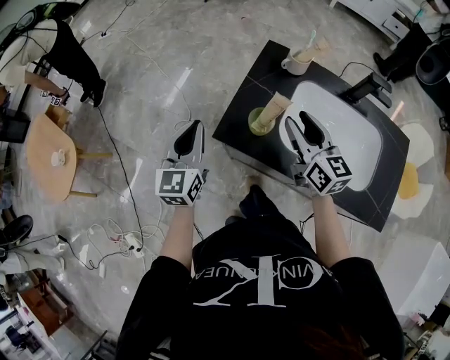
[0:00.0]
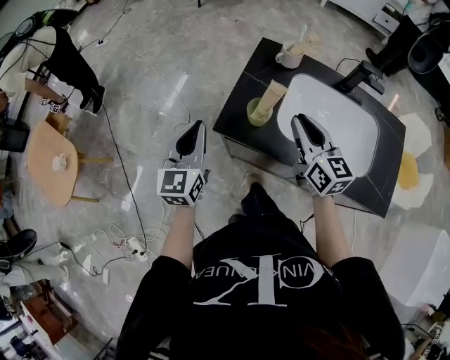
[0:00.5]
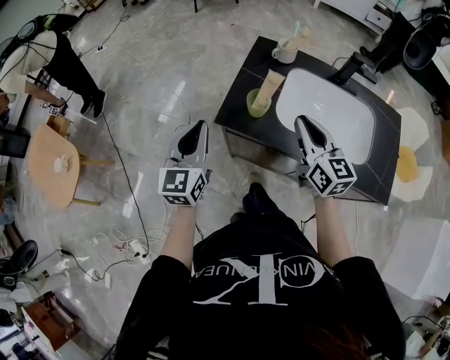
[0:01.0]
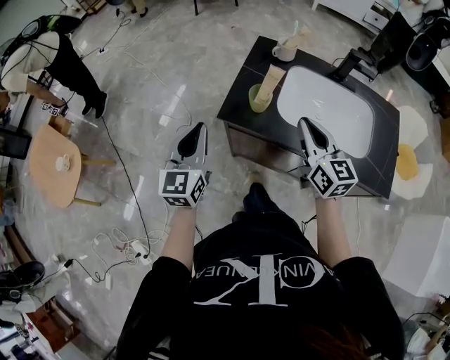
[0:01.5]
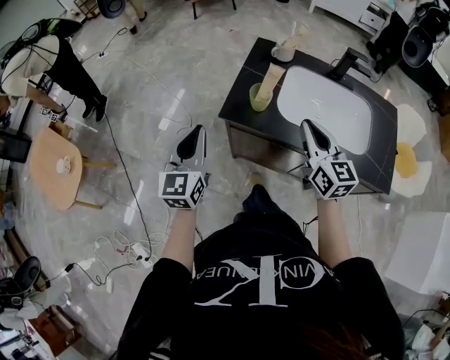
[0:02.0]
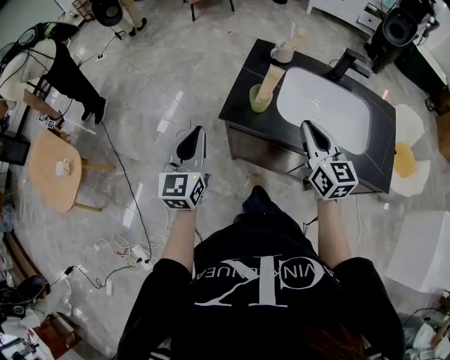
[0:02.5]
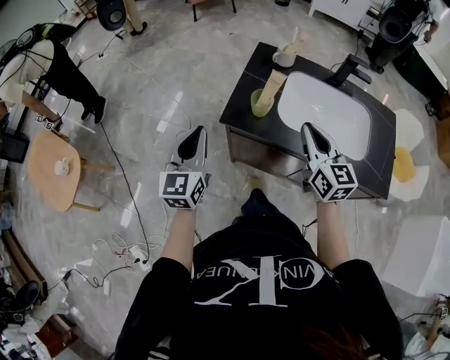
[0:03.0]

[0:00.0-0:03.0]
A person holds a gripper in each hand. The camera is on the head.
0:00.0 to 0:01.5: The two grippers go about 10 cm backward. The right gripper closes up.
0:01.5 to 0:03.0: There are only small adjustments of the grippers.

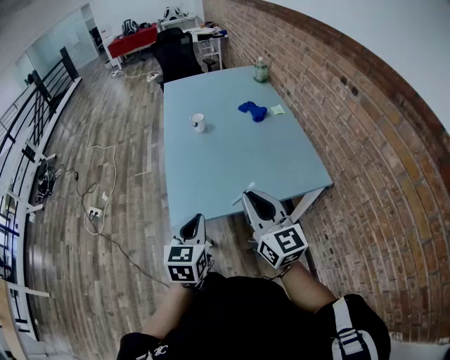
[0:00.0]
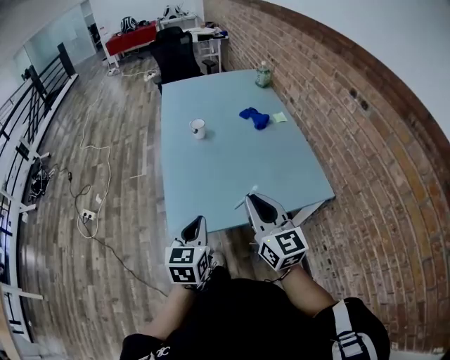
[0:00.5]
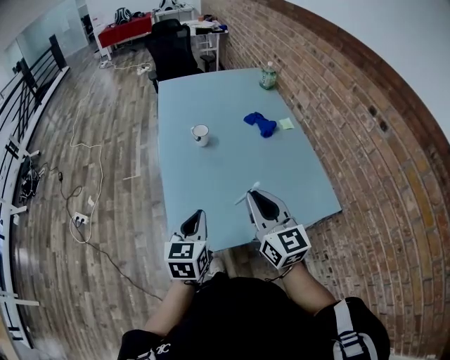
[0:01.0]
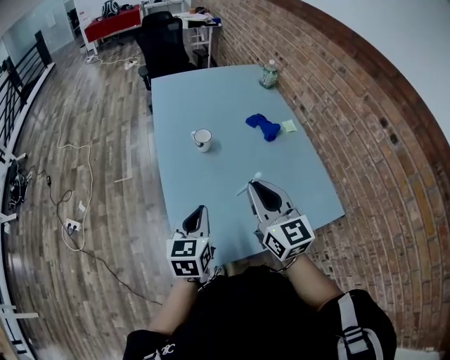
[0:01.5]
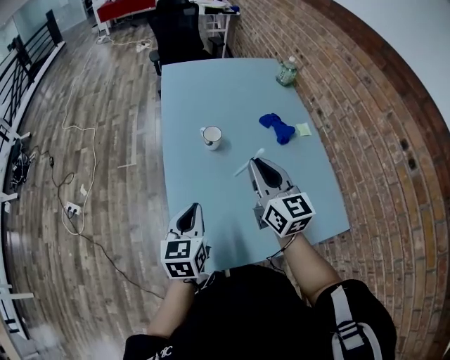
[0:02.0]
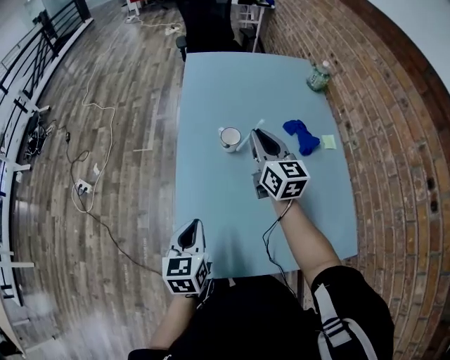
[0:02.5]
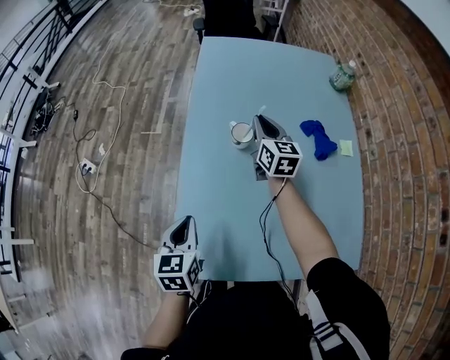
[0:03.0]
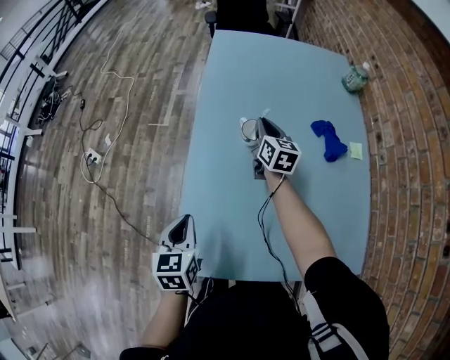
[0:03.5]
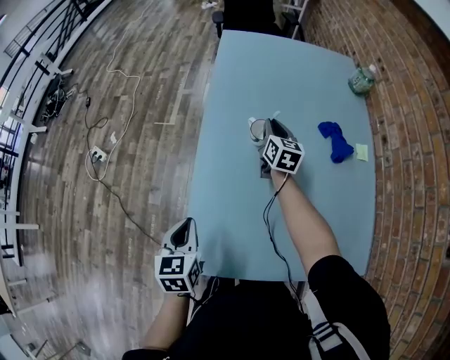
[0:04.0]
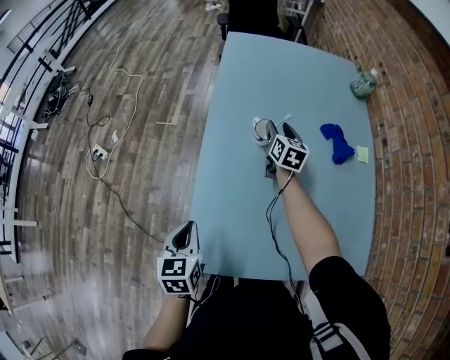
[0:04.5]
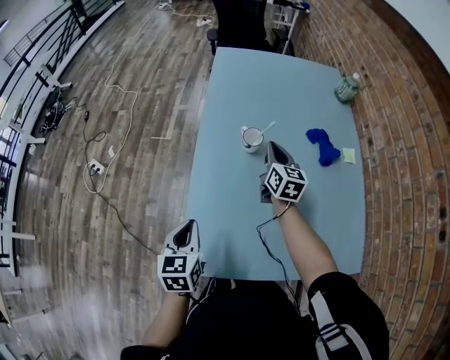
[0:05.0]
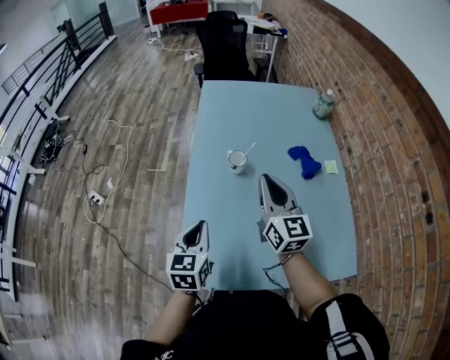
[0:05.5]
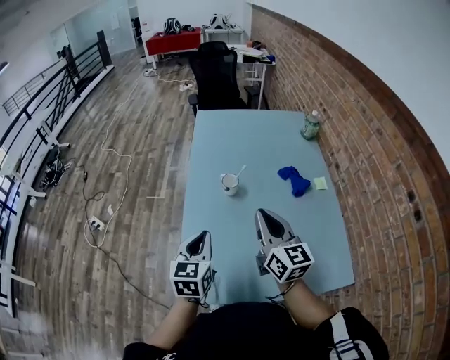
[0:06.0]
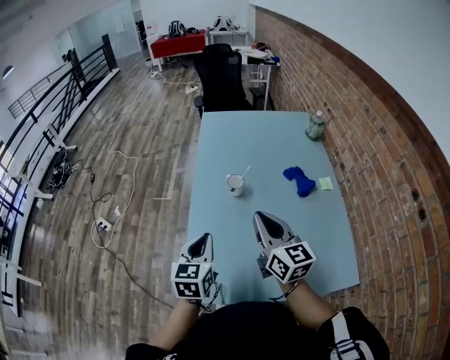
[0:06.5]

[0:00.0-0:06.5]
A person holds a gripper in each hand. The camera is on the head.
0:00.0 to 0:02.0: Both grippers move forward, approximately 35 cm.
0:02.0 to 0:04.5: The right gripper shifts roughly 35 cm forward and downward, changes its angle by about 20 degrees, and opens its fingers; the left gripper goes roughly 10 cm downward and to the left, and turns by approximately 20 degrees.
0:04.5 to 0:06.5: The left gripper travels upward and to the right by some 15 cm, and rotates approximately 20 degrees, while the right gripper goes some 40 cm backward and upward, swivels roughly 30 degrees, and closes.

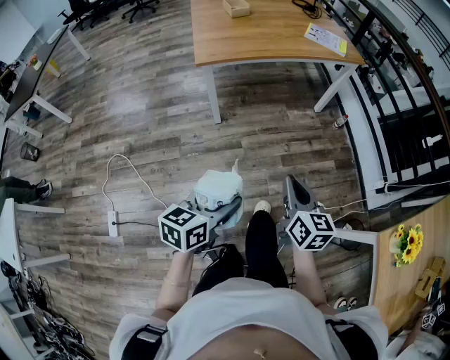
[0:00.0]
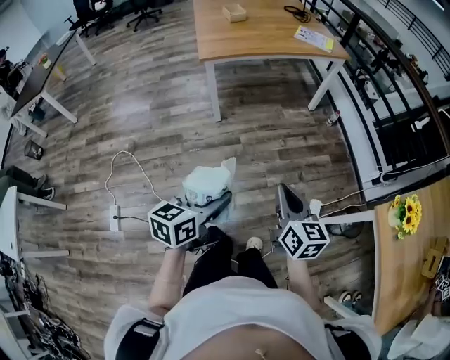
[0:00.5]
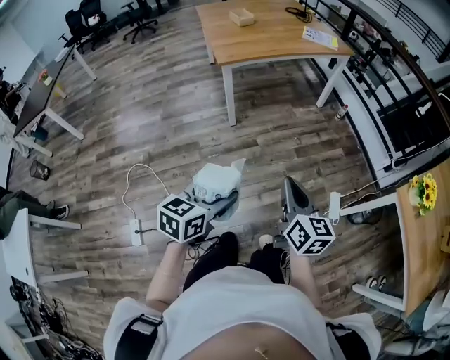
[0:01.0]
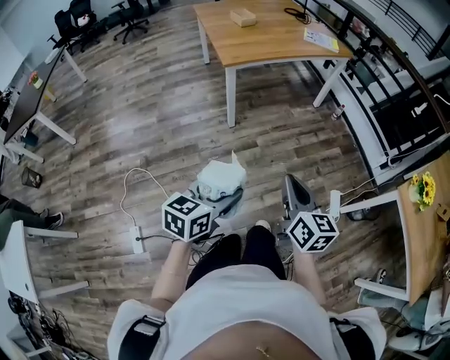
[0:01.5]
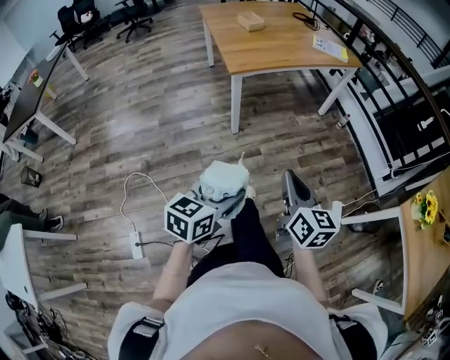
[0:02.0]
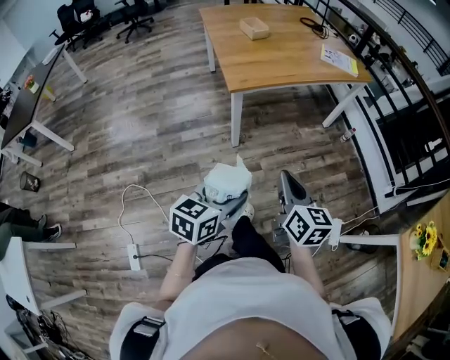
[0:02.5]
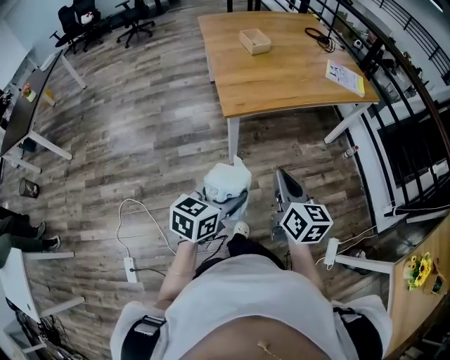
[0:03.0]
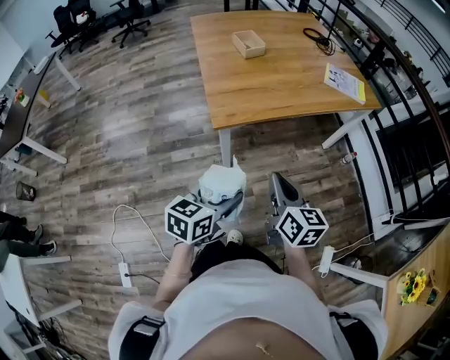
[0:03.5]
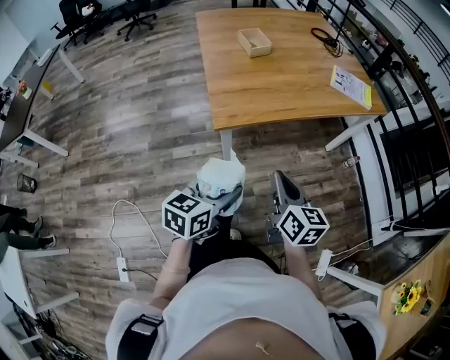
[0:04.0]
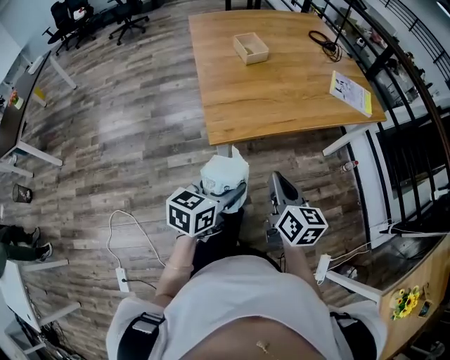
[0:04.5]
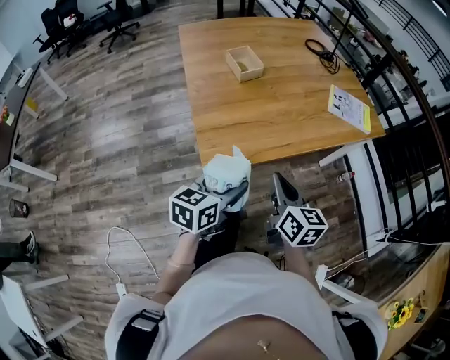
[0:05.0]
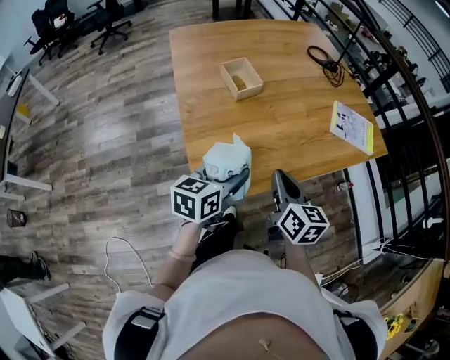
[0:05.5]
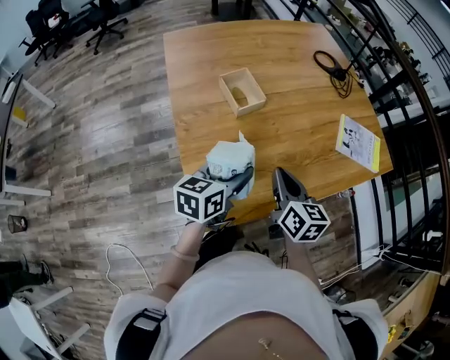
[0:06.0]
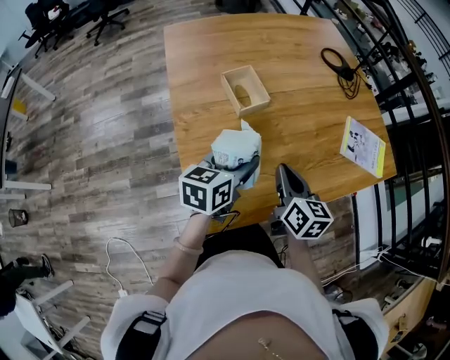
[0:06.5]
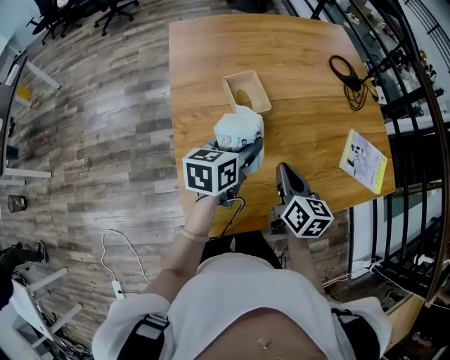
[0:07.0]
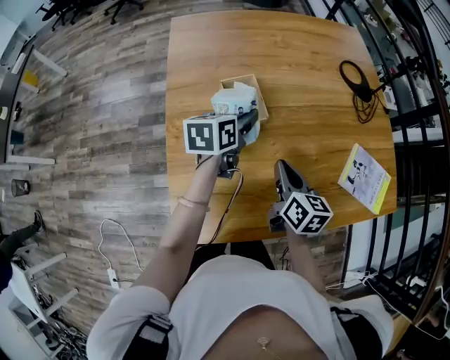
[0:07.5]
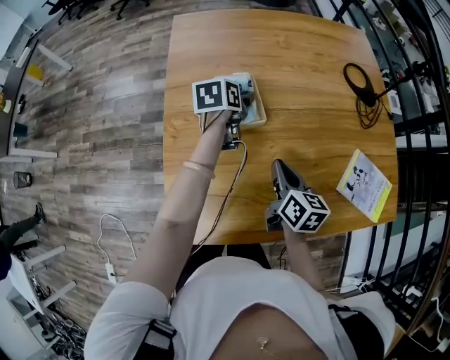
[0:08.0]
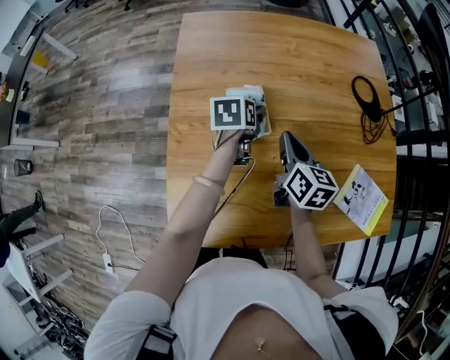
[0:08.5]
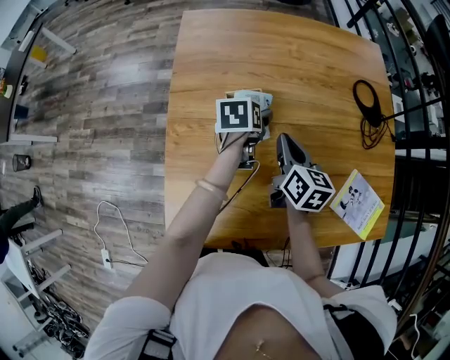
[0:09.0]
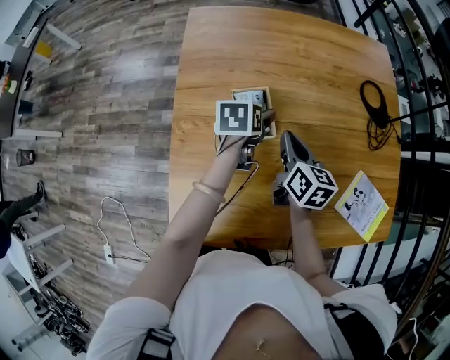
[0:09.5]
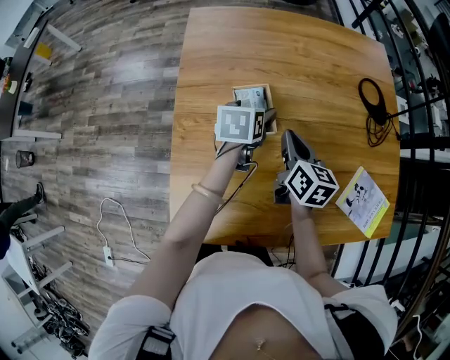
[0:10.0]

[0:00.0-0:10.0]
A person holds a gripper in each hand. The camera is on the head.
0:00.0 to 0:02.0: The grippers both shift to the left and backward by some 25 cm.
0:02.0 to 0:04.0: The grippers both shift forward by approximately 40 cm.
0:04.0 to 0:06.0: The grippers both shift forward by roughly 40 cm.
0:06.0 to 0:08.0: The right gripper moves forward, about 15 cm, while the left gripper shifts about 30 cm forward, and changes its angle by approximately 30 degrees.
0:08.0 to 0:10.0: The right gripper travels forward by about 10 cm.

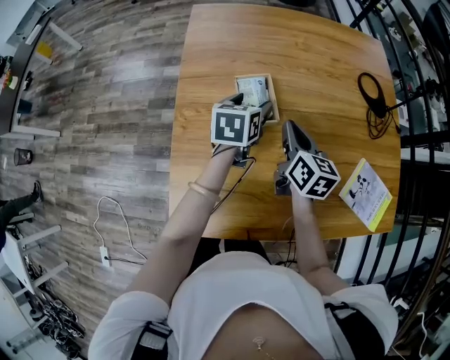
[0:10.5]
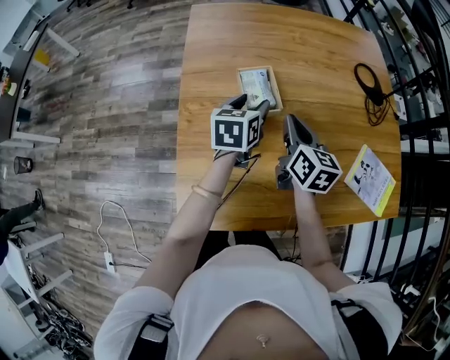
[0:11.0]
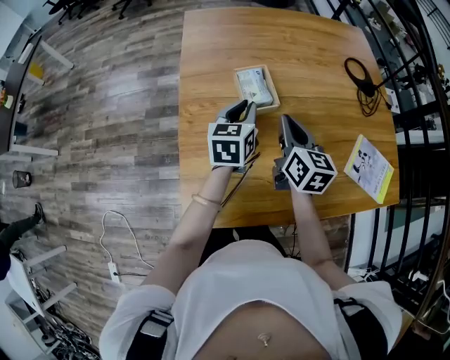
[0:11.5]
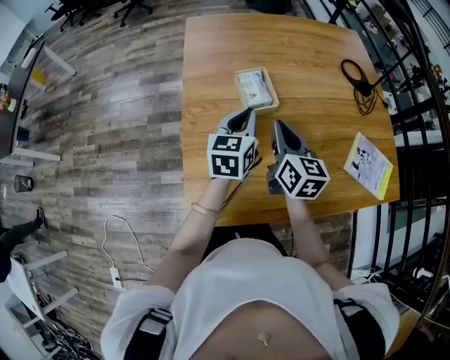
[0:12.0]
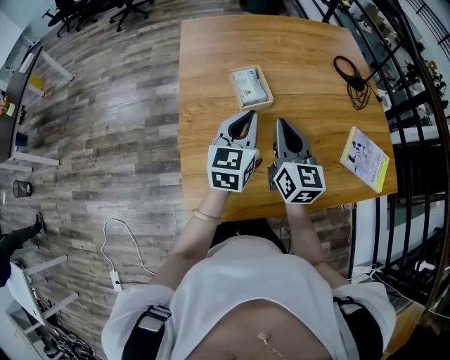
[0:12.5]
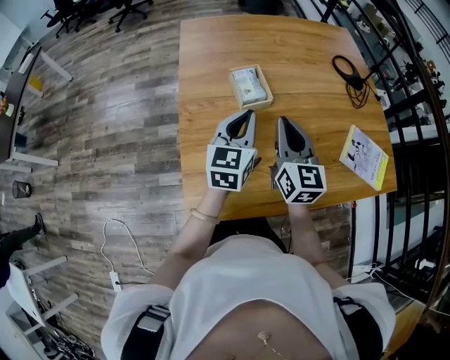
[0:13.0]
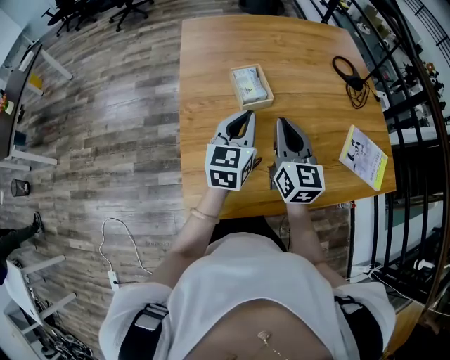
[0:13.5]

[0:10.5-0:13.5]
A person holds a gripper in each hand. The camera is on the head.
0:10.5 to 0:12.0: The right gripper moves backward, roughly 10 cm, while the left gripper moves backward and upward, approximately 10 cm, and closes up.
0:12.0 to 0:13.5: The right gripper changes place by some 5 cm. Meanwhile the left gripper ends up roughly 5 cm from where it was.

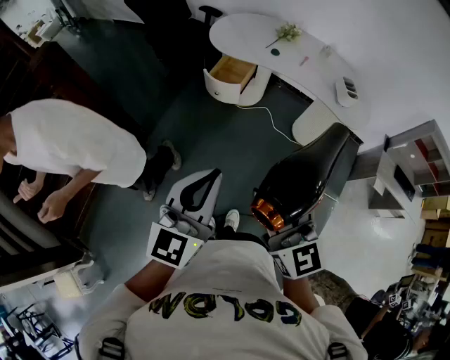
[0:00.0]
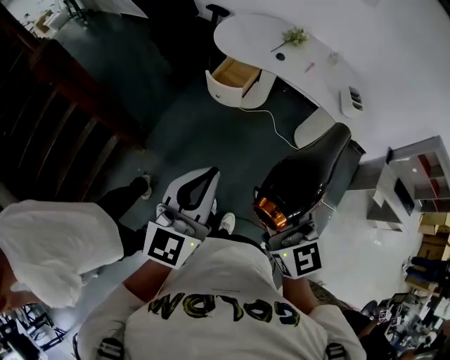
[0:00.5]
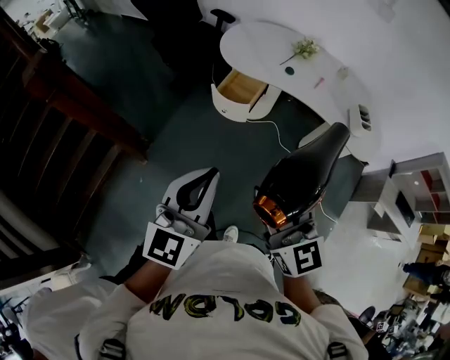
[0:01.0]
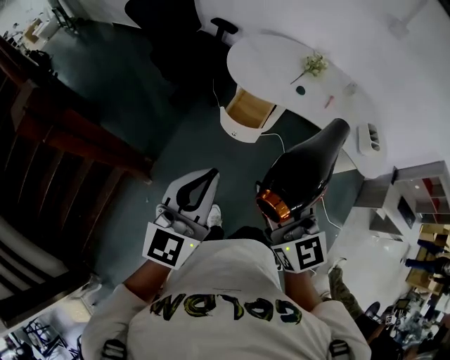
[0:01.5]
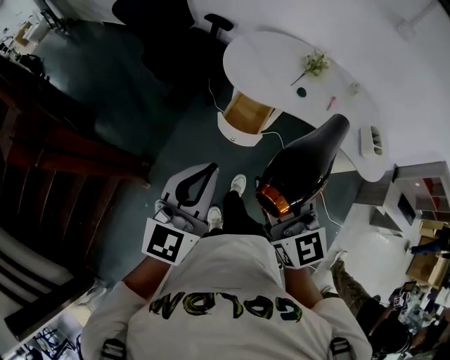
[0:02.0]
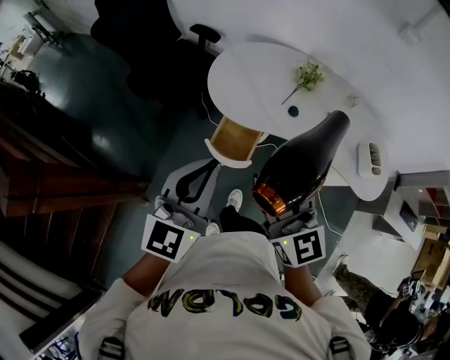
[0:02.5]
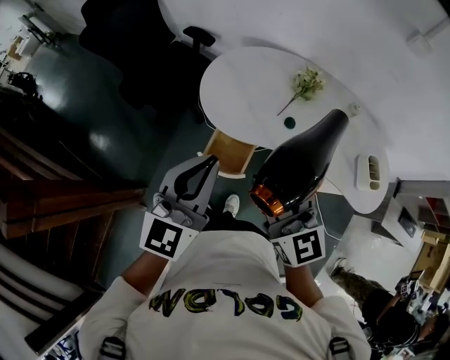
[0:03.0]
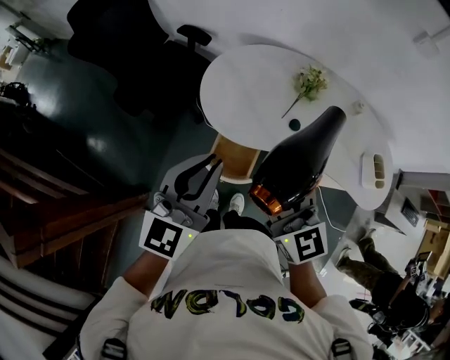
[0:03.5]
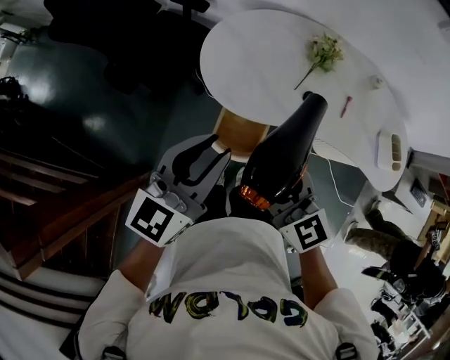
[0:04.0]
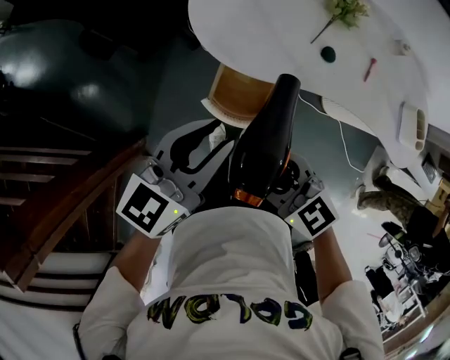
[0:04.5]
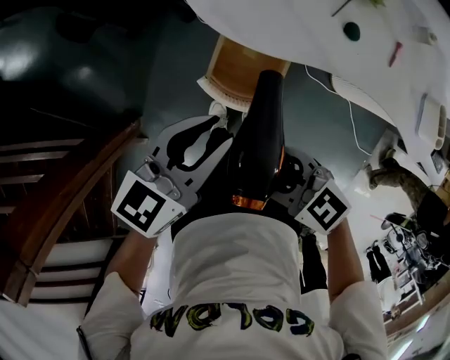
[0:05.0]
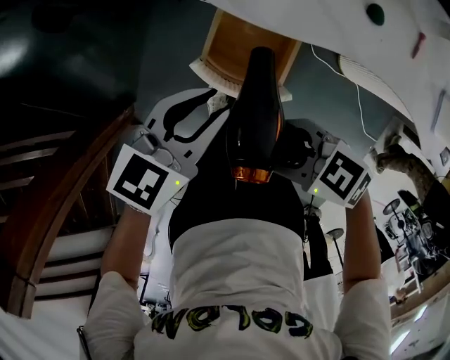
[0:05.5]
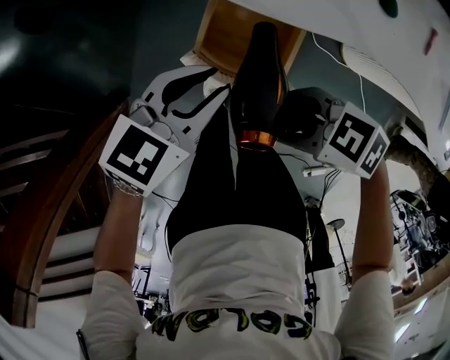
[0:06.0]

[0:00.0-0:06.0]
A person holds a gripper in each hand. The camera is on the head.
0:00.0 to 0:02.0: The grippers both shift forward by about 35 cm.
0:02.0 to 0:04.0: The right gripper goes approximately 30 cm forward and downward. The left gripper shifts some 30 cm forward, changes its angle by some 20 degrees, and opens up.
0:04.0 to 0:06.0: Both grippers travel together downward, about 35 cm. The right gripper rotates roughly 60 degrees. Meanwhile the left gripper changes its angle by approximately 30 degrees.
